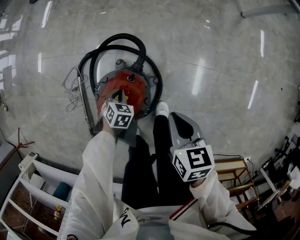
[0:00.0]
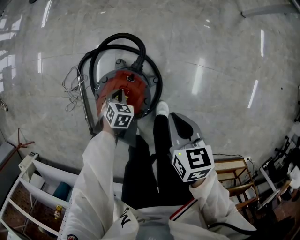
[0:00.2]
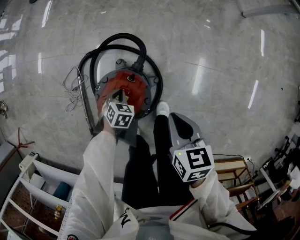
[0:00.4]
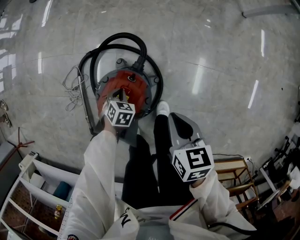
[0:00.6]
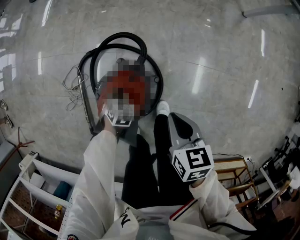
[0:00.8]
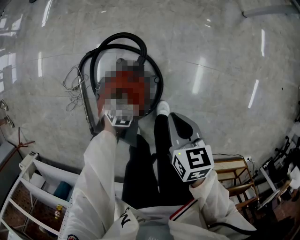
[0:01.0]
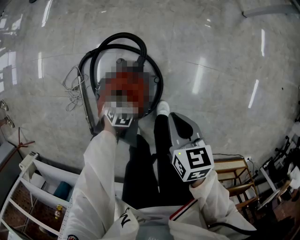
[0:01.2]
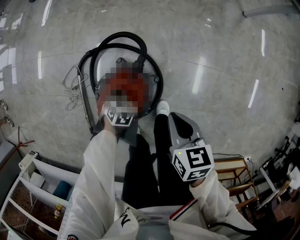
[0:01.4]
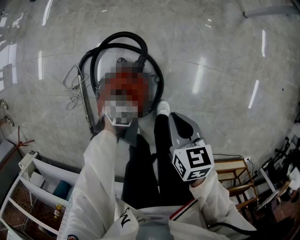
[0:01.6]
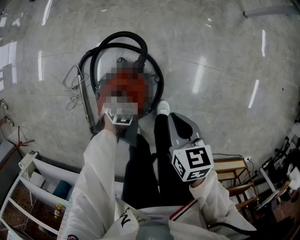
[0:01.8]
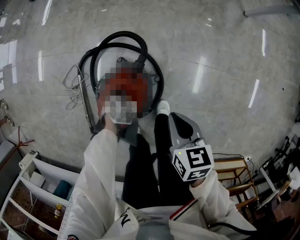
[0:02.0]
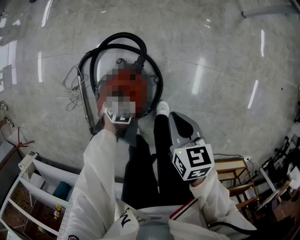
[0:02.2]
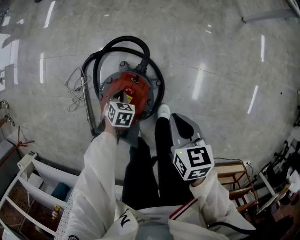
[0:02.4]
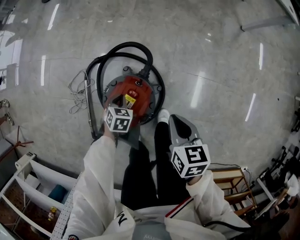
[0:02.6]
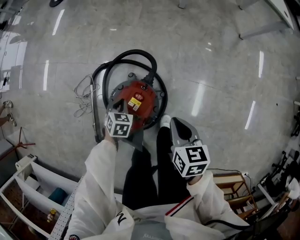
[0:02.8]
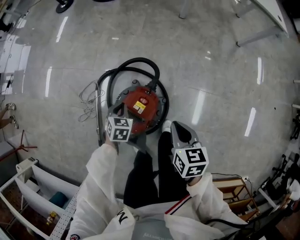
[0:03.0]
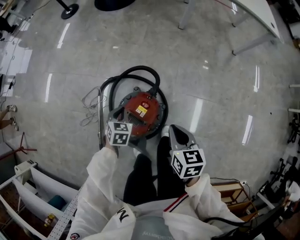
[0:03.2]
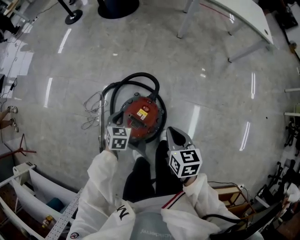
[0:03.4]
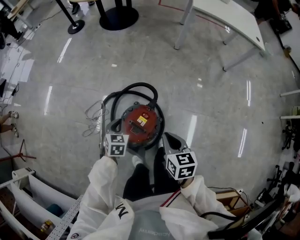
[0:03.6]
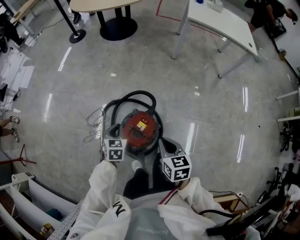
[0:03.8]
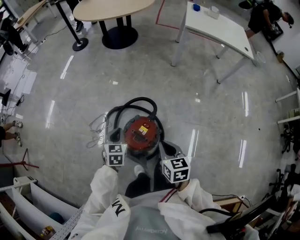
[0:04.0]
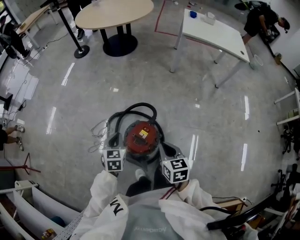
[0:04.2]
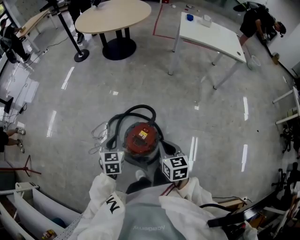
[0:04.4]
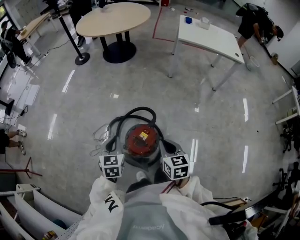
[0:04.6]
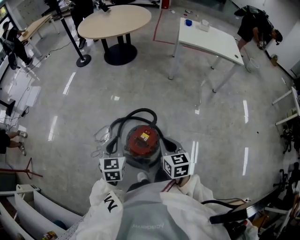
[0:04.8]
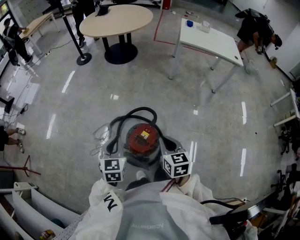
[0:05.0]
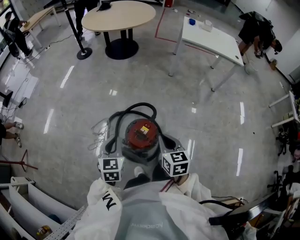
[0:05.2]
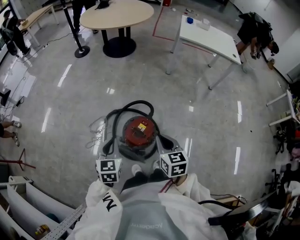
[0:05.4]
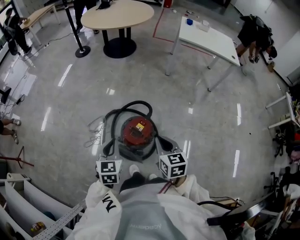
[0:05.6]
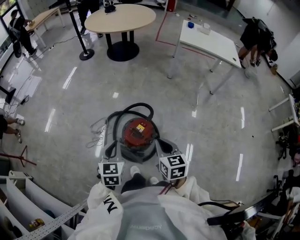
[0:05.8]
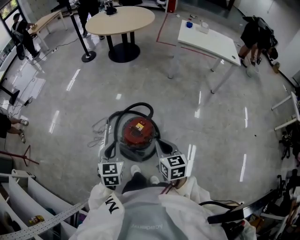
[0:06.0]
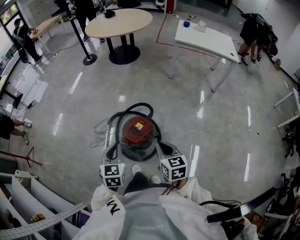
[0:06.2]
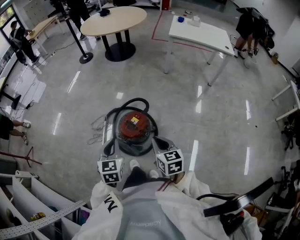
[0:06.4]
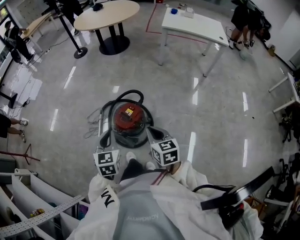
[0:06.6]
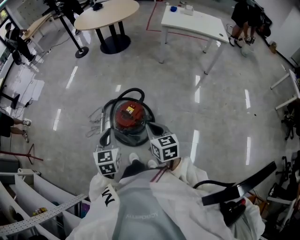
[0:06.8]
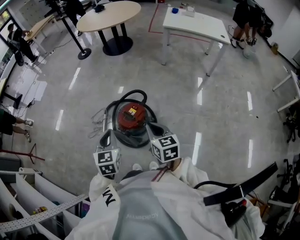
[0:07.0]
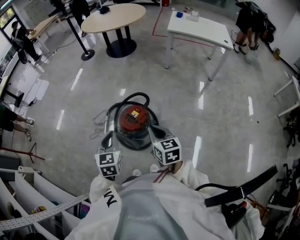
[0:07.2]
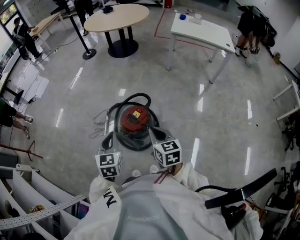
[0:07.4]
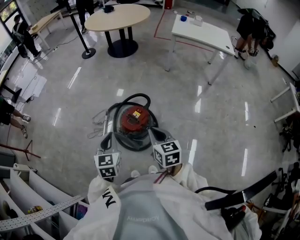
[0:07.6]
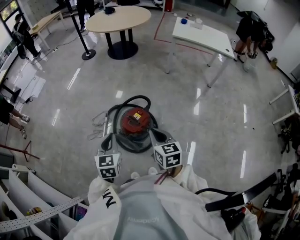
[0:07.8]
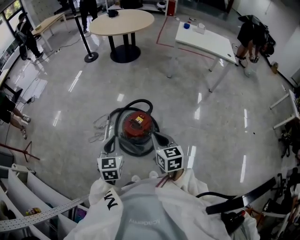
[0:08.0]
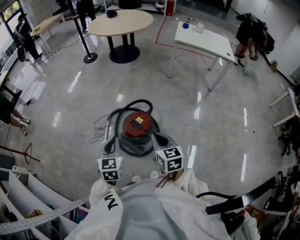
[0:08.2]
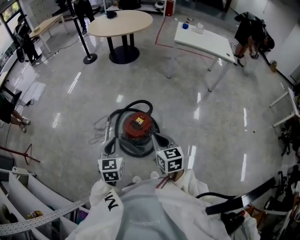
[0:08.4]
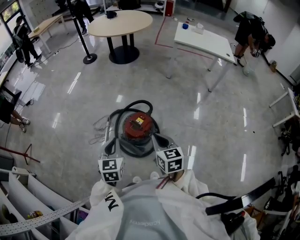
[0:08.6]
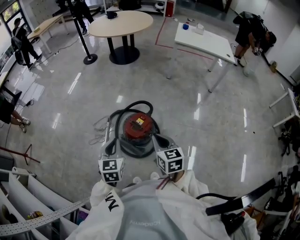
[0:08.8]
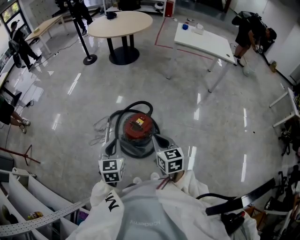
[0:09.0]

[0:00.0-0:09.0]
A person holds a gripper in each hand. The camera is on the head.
0:00.0 to 0:01.6: Both grippers stay about where they are.
0:01.6 to 0:03.0: The left gripper heads upward, covering some 10 cm. Meanwhile the right gripper moves roughly 5 cm.
0:03.0 to 0:04.4: The right gripper heads upward and to the left, covering roughly 15 cm. The left gripper goes approximately 25 cm upward, and swivels approximately 20 degrees.
0:04.4 to 0:06.0: The left gripper goes some 15 cm backward and upward. The right gripper heads backward, covering roughly 10 cm.
0:06.0 to 0:07.6: The left gripper travels backward by about 5 cm.
0:07.6 to 0:09.0: There are only small adjustments of the grippers.

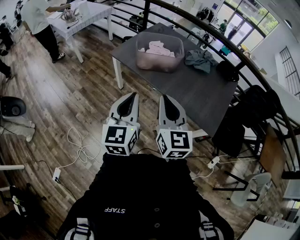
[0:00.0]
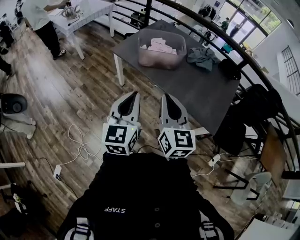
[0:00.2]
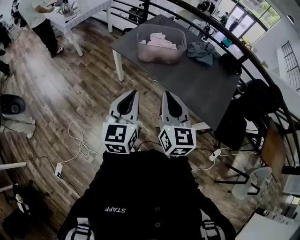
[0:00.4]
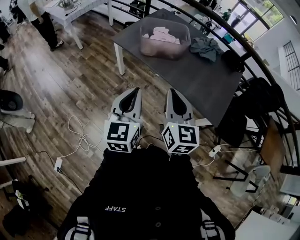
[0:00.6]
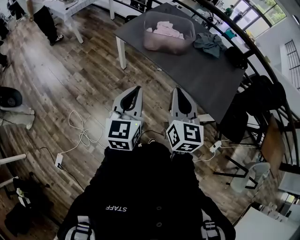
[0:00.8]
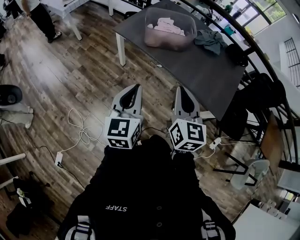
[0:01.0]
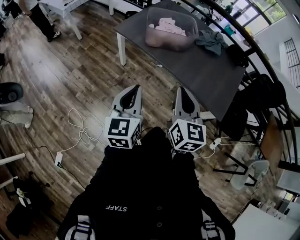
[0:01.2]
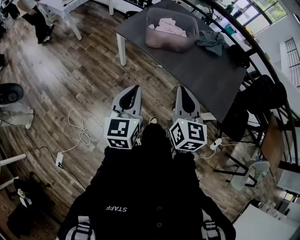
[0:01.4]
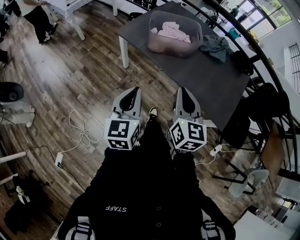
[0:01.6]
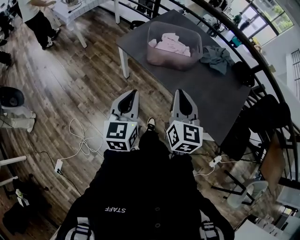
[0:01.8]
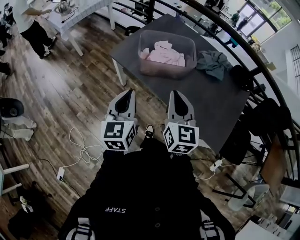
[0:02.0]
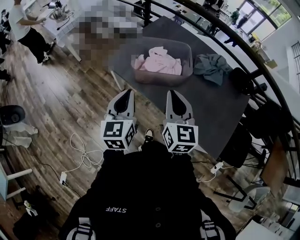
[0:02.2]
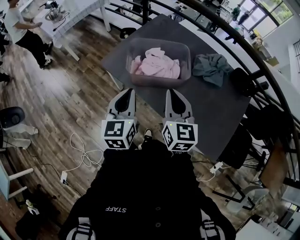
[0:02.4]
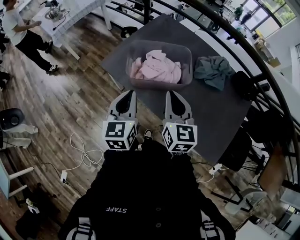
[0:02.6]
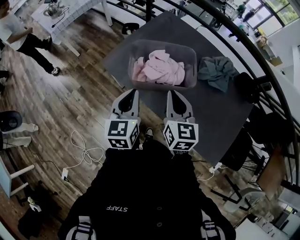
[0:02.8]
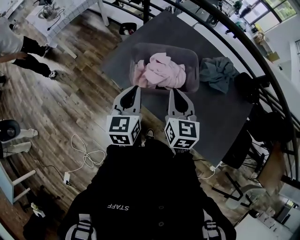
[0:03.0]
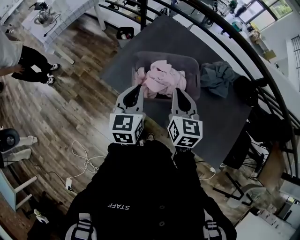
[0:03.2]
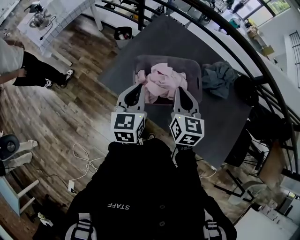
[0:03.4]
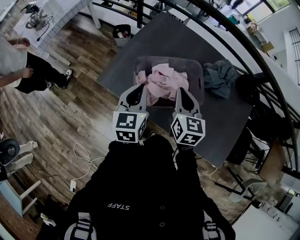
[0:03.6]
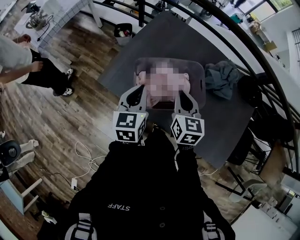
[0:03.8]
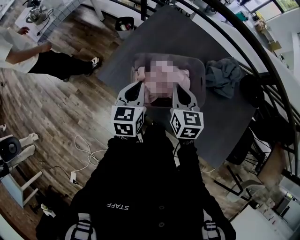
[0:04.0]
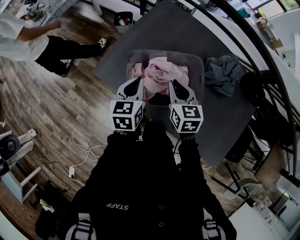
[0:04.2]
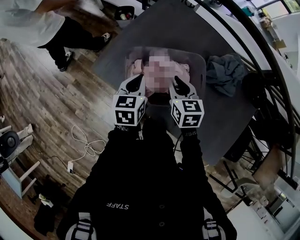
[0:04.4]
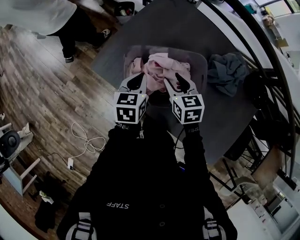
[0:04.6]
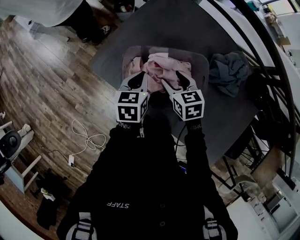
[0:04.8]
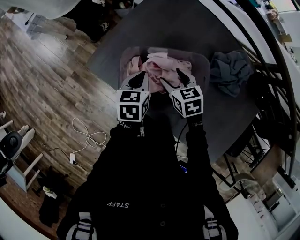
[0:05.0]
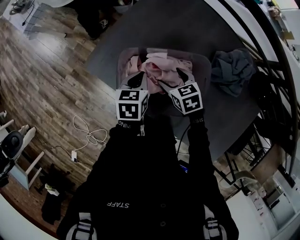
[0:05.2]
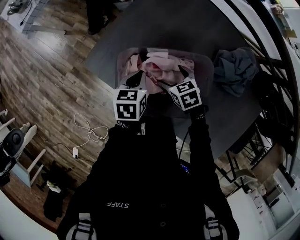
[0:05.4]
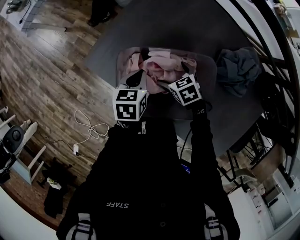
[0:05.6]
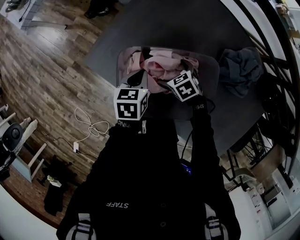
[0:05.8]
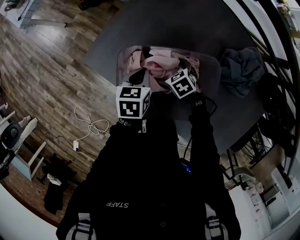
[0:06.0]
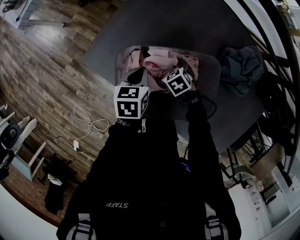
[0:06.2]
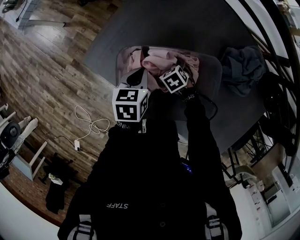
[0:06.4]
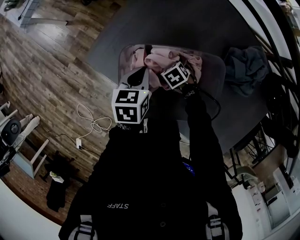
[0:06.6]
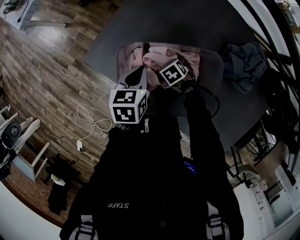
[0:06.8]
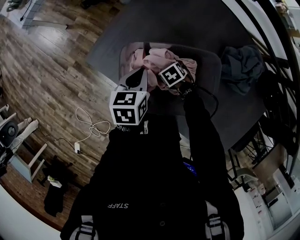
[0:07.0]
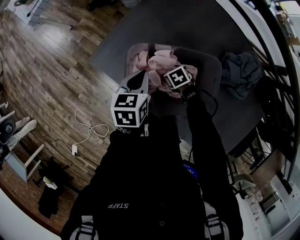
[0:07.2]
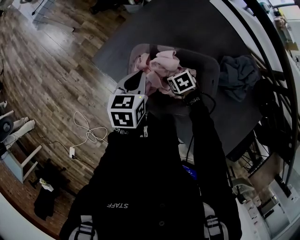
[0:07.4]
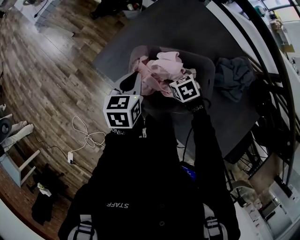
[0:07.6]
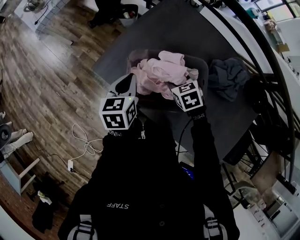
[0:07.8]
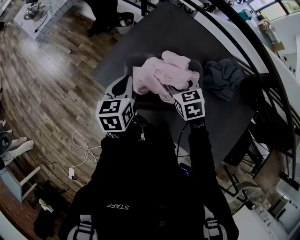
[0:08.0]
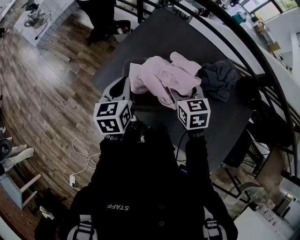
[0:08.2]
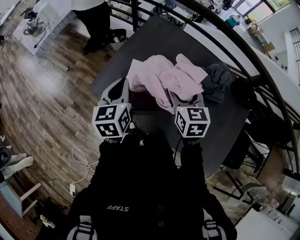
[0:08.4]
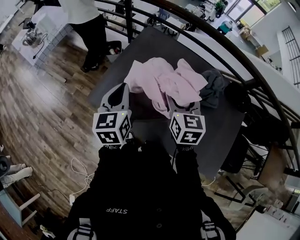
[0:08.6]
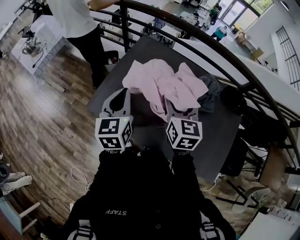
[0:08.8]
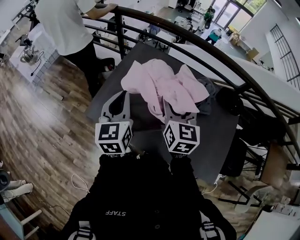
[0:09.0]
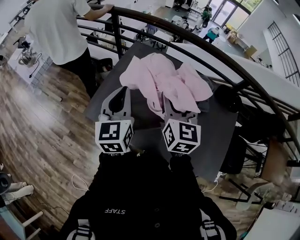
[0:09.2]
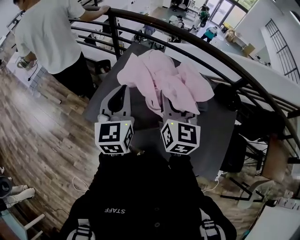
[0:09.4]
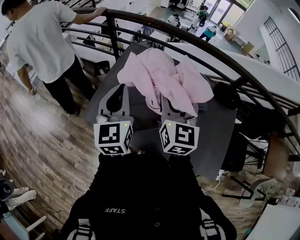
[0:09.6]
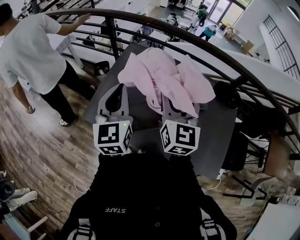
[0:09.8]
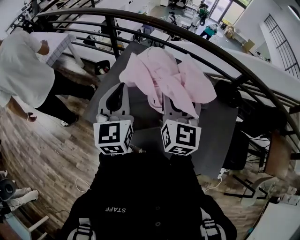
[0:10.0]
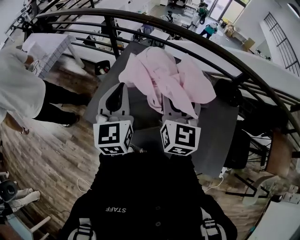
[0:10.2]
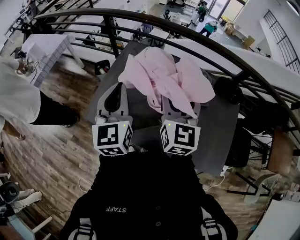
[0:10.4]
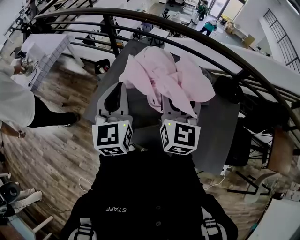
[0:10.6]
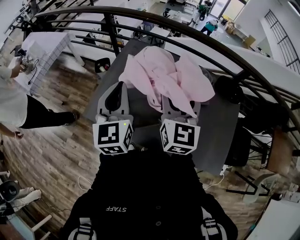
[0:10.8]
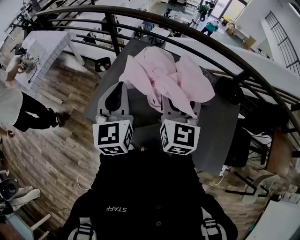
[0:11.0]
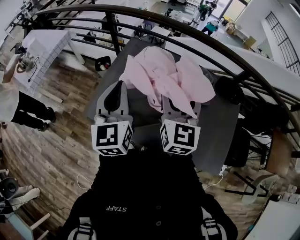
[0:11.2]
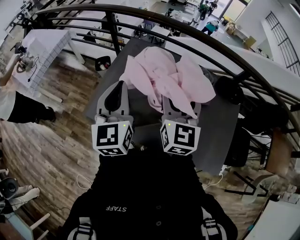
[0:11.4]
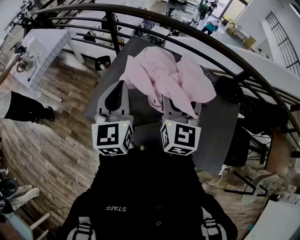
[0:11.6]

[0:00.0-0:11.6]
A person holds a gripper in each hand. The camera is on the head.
0:00.0 to 0:01.4: The left gripper is displaced downward and to the left by some 10 cm, while the right gripper heads downward, covering roughly 5 cm.
0:01.4 to 0:02.8: The two grippers go approximately 35 cm forward.
0:02.8 to 0:04.4: Both grippers travel together forward and downward, some 25 cm. The right gripper turns by roughly 20 degrees.
0:04.4 to 0:05.8: The right gripper goes roughly 20 cm downward, turns by approximately 40 degrees, and opens up; the left gripper shifts approximately 10 cm downward.
0:05.8 to 0:07.2: The right gripper shifts roughly 5 cm downward, and closes, while the left gripper shifts about 5 cm upward.
0:07.2 to 0:08.8: The left gripper heads upward, covering roughly 25 cm, and rotates about 30 degrees. The right gripper goes about 40 cm upward, and tips its fingers upward by about 50 degrees.
0:08.8 to 0:10.2: The two grippers go some 10 cm upward.
0:10.2 to 0:11.6: The grippers stay close to where they were, moving slightly.

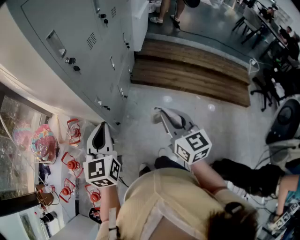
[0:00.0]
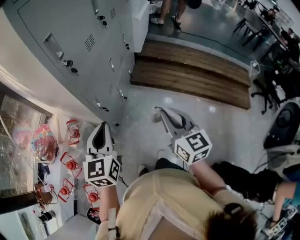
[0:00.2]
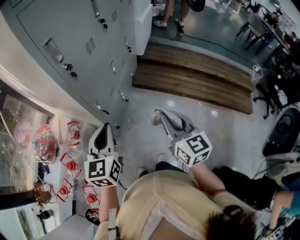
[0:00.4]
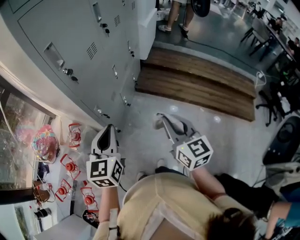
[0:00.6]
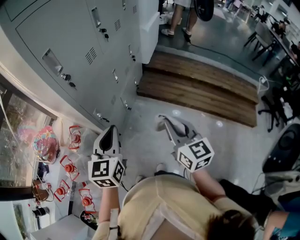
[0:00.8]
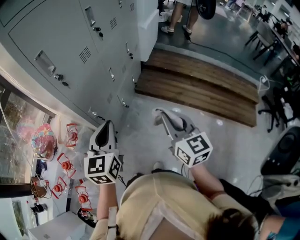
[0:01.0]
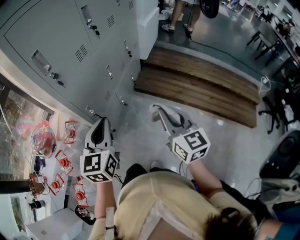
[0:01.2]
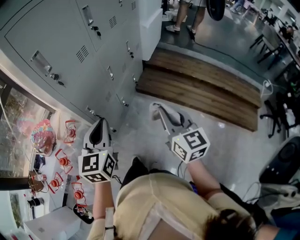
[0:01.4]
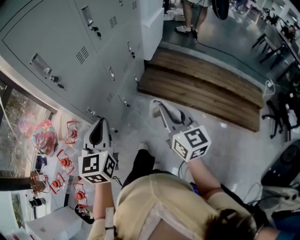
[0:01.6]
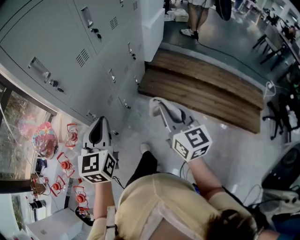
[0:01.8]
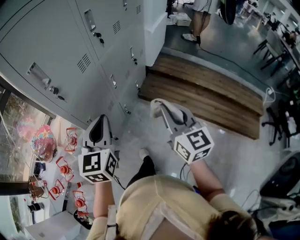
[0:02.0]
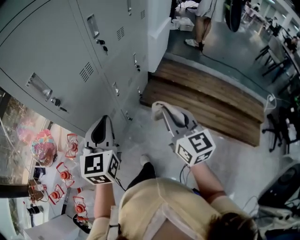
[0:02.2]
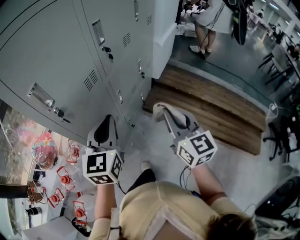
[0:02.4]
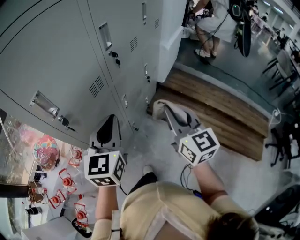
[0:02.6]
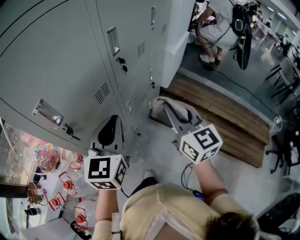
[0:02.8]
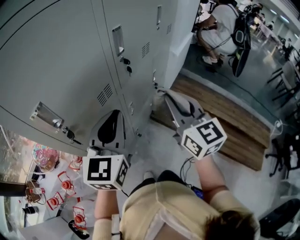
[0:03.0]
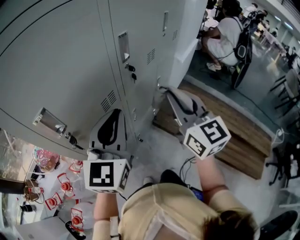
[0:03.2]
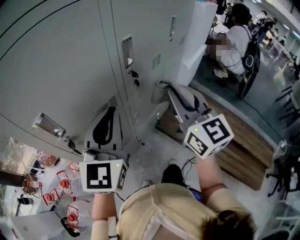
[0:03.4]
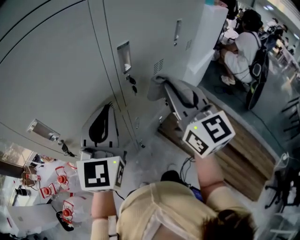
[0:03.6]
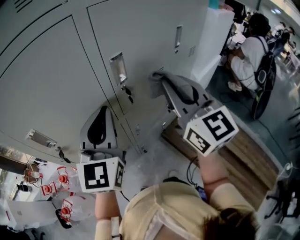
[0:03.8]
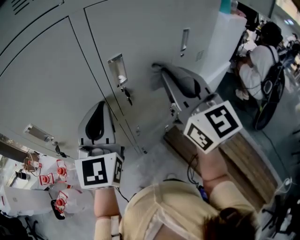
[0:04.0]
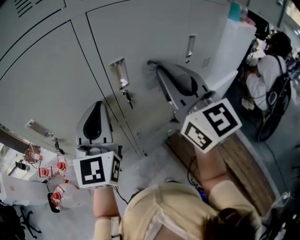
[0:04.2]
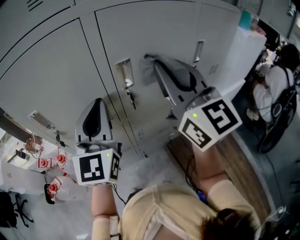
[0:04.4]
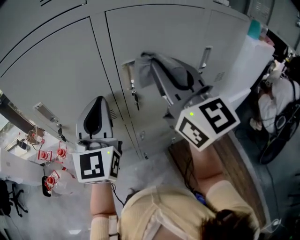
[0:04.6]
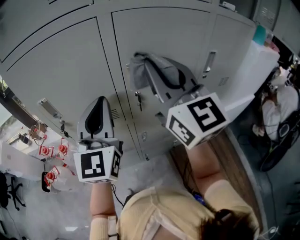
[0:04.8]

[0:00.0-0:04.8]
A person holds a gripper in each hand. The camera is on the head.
0:00.0 to 0:01.6: Both grippers move to the right and forward, roughly 15 cm.
0:01.6 to 0:03.2: Both grippers travel together forward and upward, about 30 cm.
0:03.2 to 0:04.8: The right gripper moves upward, roughly 15 cm, and rotates about 40 degrees, while the left gripper moves upward, about 10 cm, and turns by roughly 50 degrees.
